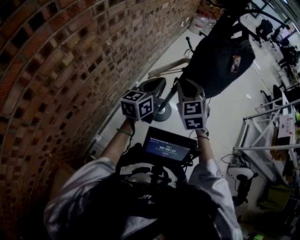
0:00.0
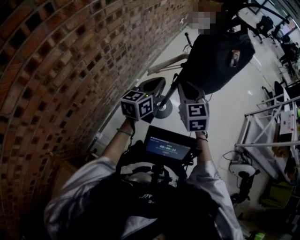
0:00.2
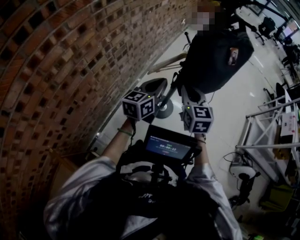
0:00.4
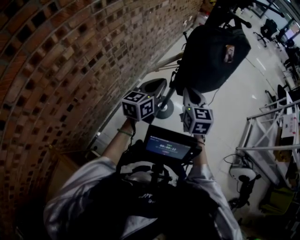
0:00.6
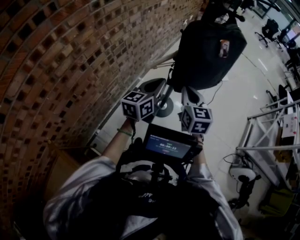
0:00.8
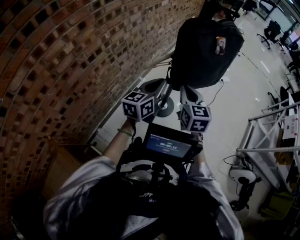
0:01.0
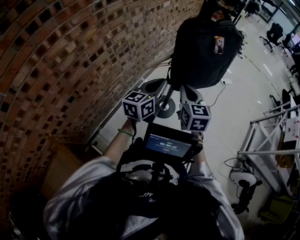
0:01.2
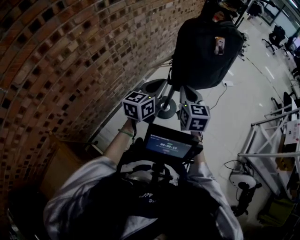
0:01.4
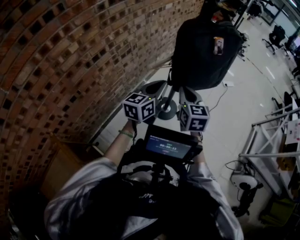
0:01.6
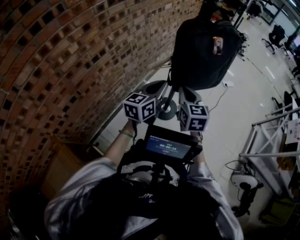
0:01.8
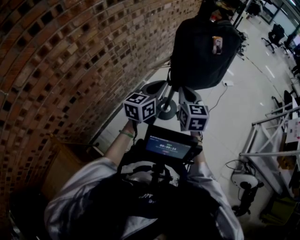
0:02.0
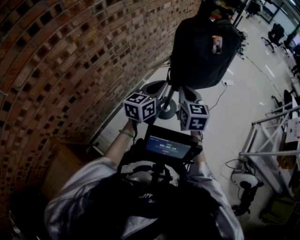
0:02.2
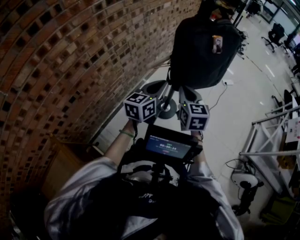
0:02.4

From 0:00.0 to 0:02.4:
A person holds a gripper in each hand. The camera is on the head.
From 0:00.0 to 0:01.2: The right gripper travels to the right by approximately 10 cm, and rotates approximately 30 degrees; the left gripper heads to the right and backward, covering some 10 cm.
From 0:01.2 to 0:02.4: Both grippers stay about where they are.

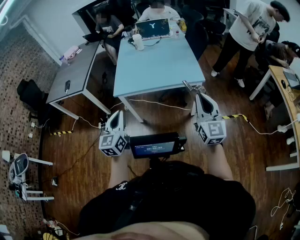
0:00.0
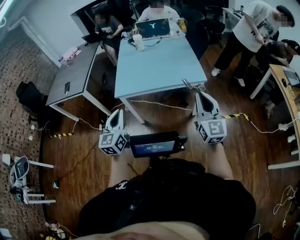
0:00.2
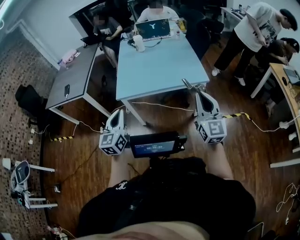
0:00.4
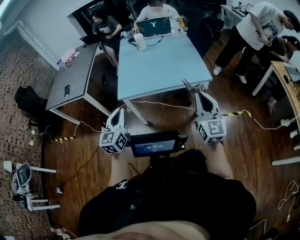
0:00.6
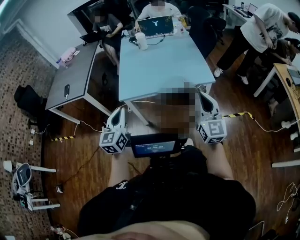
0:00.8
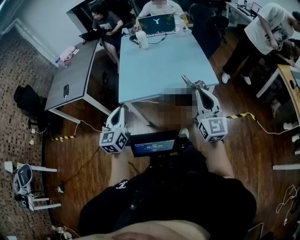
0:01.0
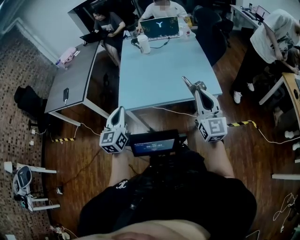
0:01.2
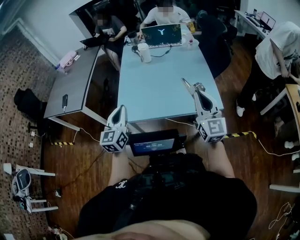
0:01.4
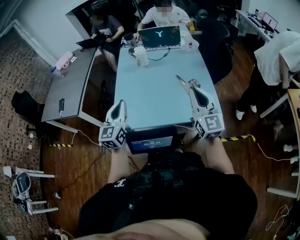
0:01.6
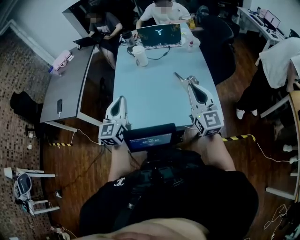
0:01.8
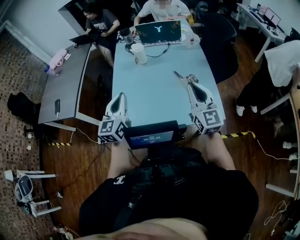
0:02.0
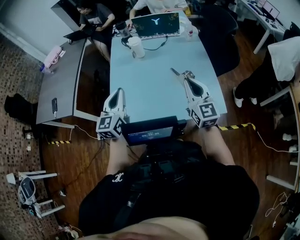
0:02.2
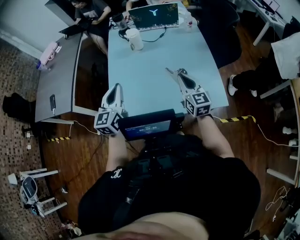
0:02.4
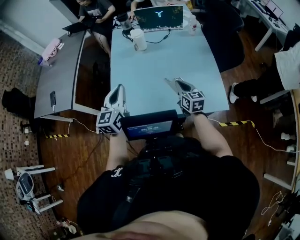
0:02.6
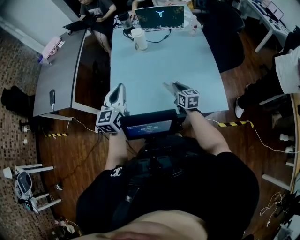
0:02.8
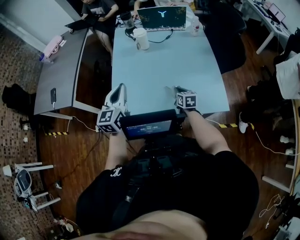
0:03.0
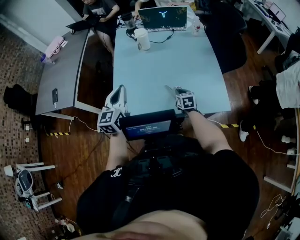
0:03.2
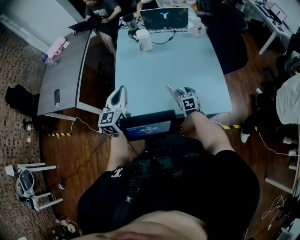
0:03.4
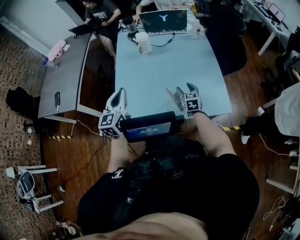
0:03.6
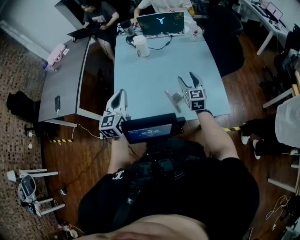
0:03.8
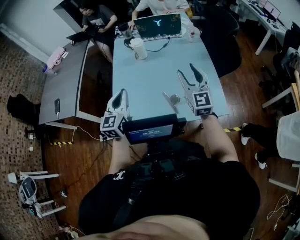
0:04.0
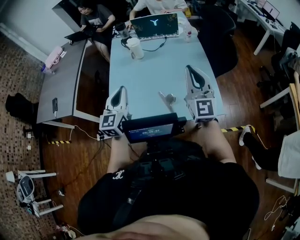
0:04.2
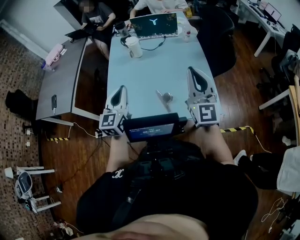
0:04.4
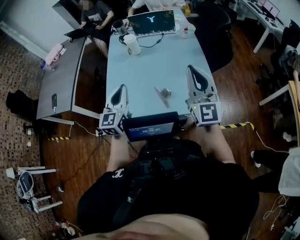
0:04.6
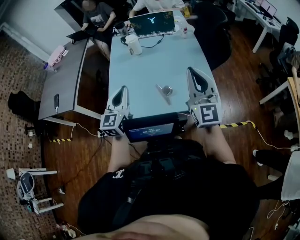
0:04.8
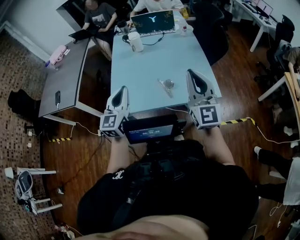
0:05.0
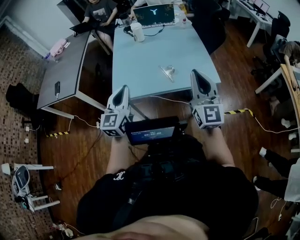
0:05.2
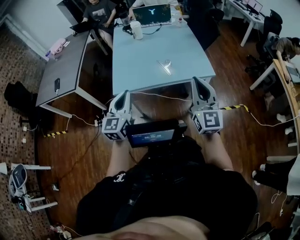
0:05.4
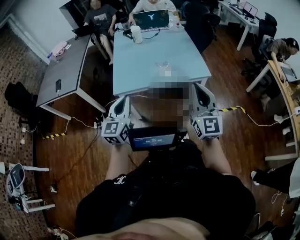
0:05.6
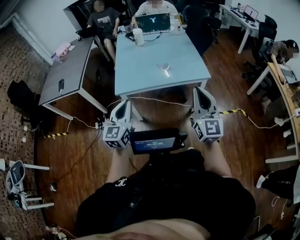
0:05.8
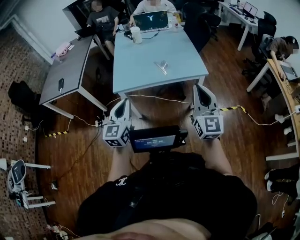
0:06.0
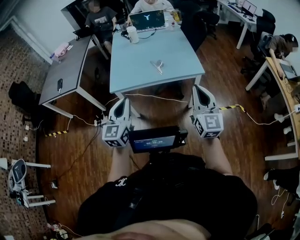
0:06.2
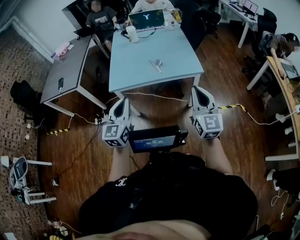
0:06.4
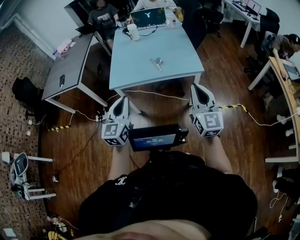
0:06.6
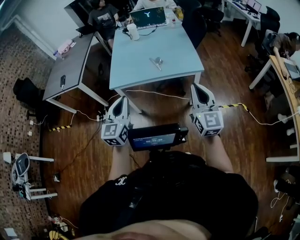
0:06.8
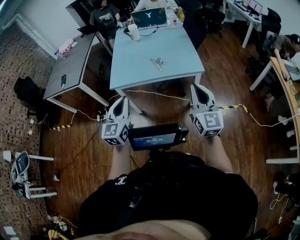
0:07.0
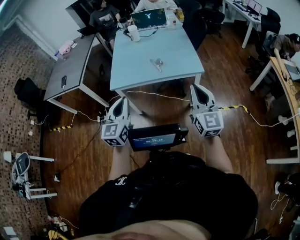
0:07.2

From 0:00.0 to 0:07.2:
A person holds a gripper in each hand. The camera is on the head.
From 0:00.0 to 0:01.4: The grippers both shift forward by approximately 30 cm.
From 0:01.4 to 0:02.8: The right gripper goes some 35 cm downward and forward, and points its fingers about 30 degrees further downward. Meanwhile the left gripper heads forward, covering some 15 cm.
From 0:02.8 to 0:04.4: The right gripper moves upward, about 30 cm, tips its fingers upward by approximately 40 degrees, and opens, then closes again.
From 0:04.4 to 0:05.8: Both grippers move backward, roughly 40 cm.
From 0:05.8 to 0:07.2: The grippers both shift to the right by about 10 cm.

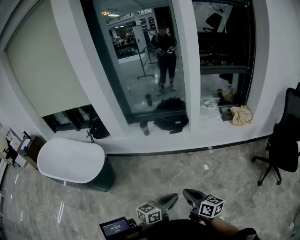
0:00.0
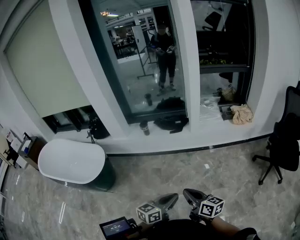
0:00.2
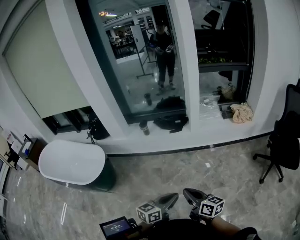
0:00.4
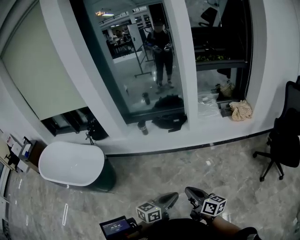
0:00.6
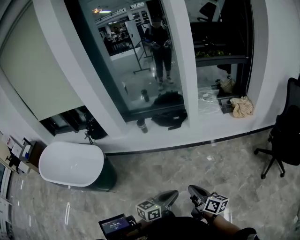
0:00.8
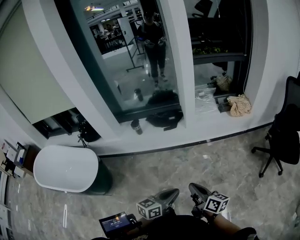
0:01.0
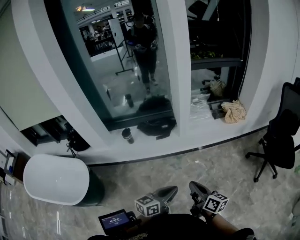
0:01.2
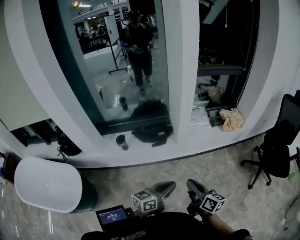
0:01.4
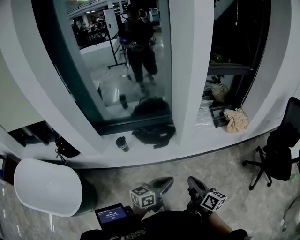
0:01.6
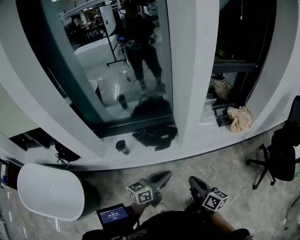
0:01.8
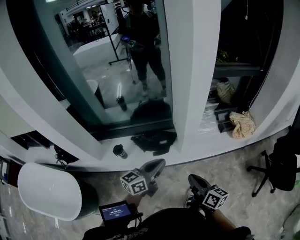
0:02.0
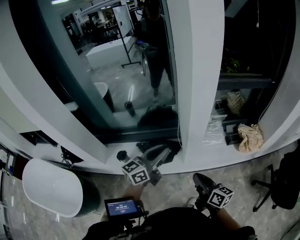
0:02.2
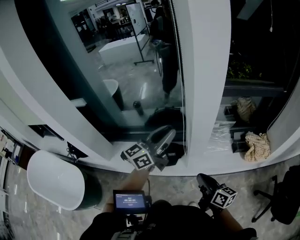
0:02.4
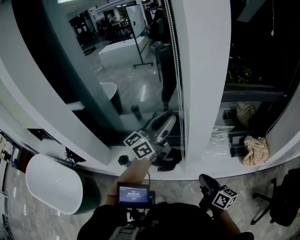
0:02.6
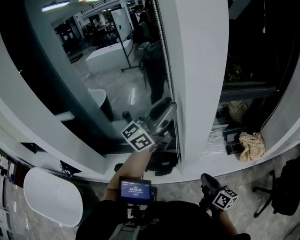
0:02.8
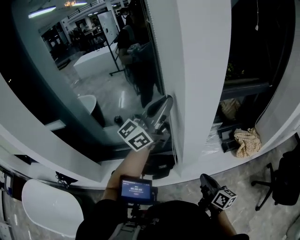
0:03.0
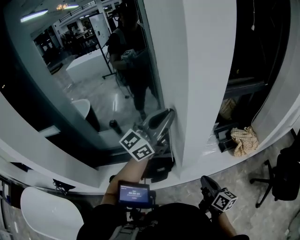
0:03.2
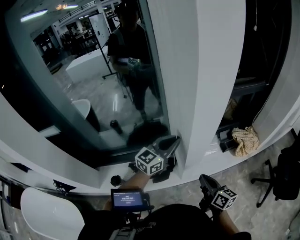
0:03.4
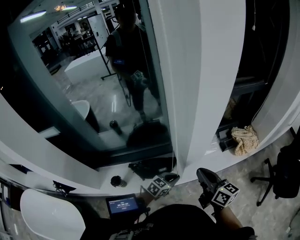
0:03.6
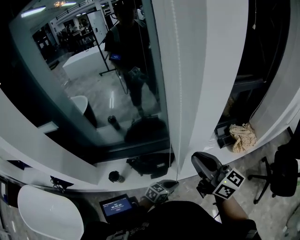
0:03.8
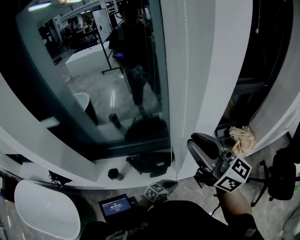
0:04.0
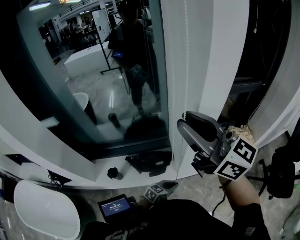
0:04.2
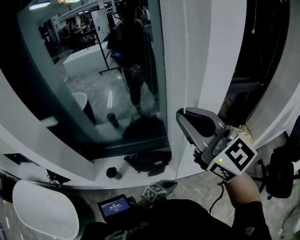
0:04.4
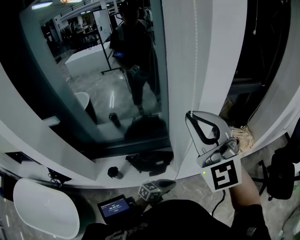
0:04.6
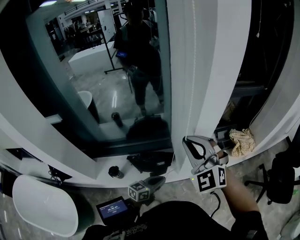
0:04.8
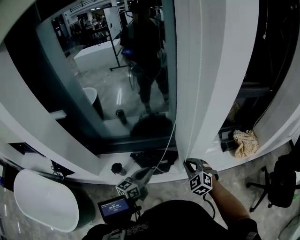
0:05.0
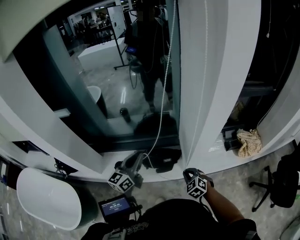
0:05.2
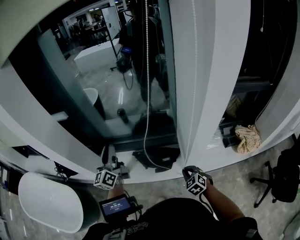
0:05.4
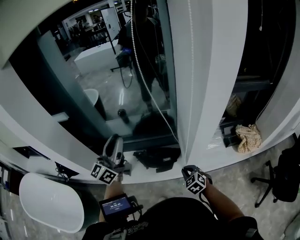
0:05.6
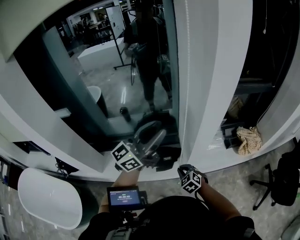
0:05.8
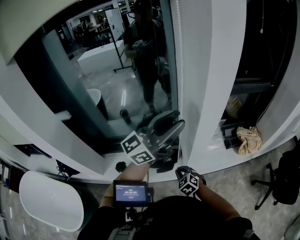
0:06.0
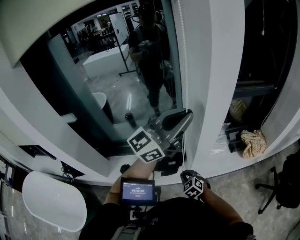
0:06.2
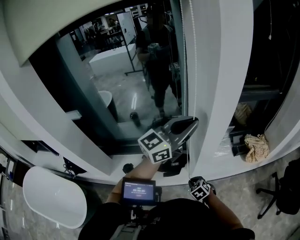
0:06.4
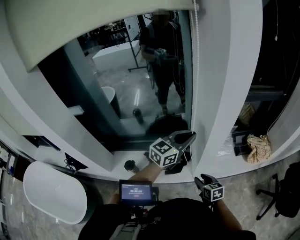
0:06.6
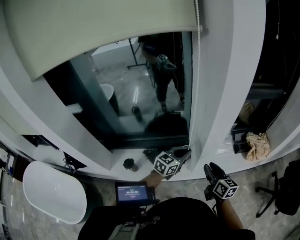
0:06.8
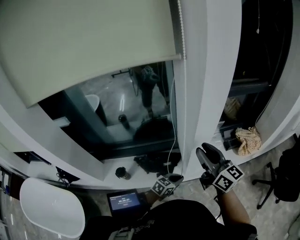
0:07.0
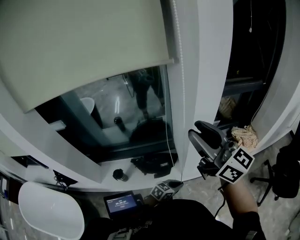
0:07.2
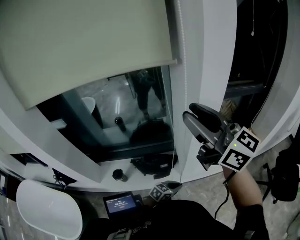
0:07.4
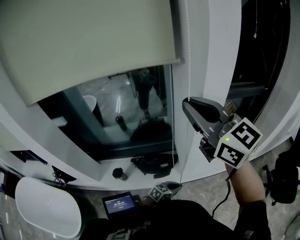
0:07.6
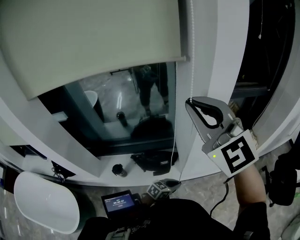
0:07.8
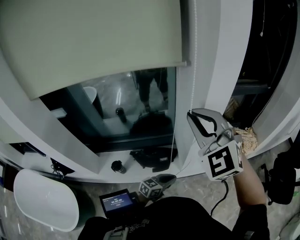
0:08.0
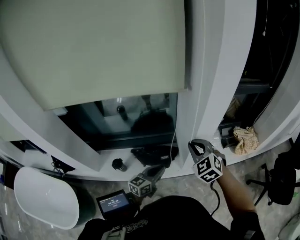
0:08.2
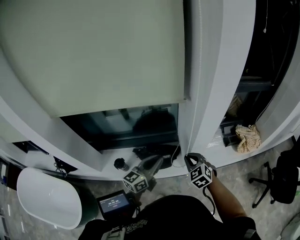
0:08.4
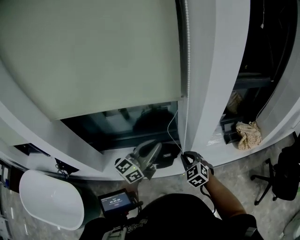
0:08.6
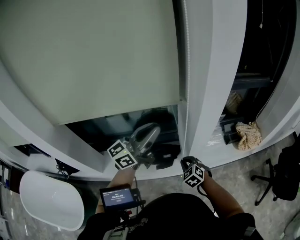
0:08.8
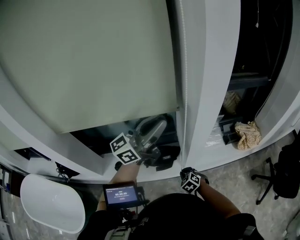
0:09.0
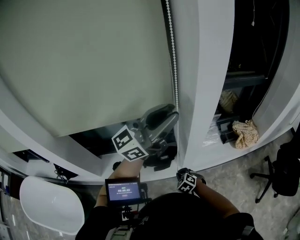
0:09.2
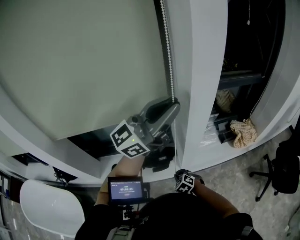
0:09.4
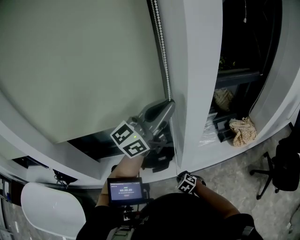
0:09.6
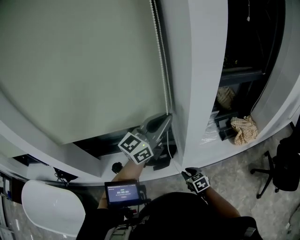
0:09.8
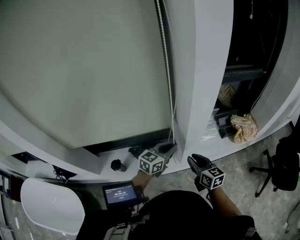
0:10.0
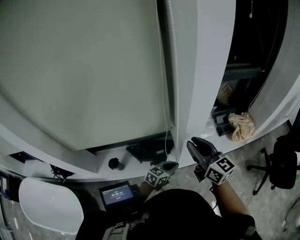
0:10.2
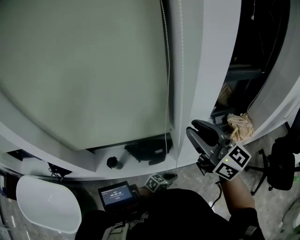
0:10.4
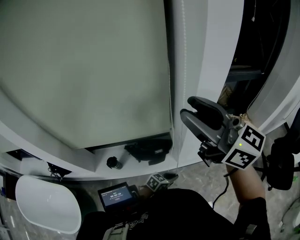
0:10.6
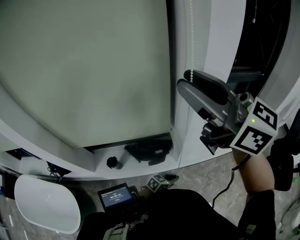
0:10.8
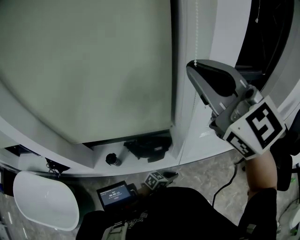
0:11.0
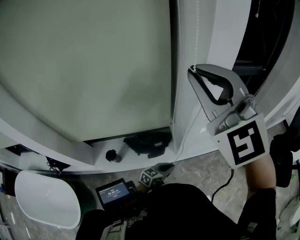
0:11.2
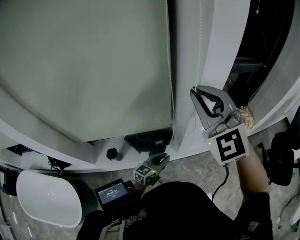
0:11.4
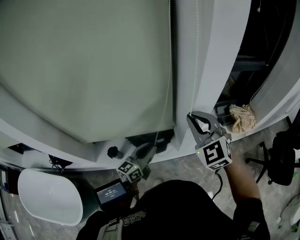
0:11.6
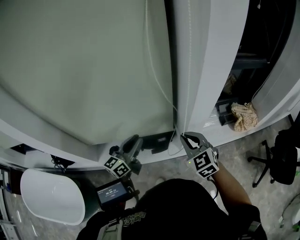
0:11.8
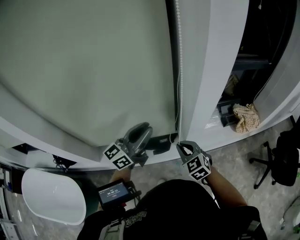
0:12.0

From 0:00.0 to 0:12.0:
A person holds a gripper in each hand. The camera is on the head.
From 0:00.0 to 0:01.6: The two grippers go some 35 cm forward. The right gripper changes its angle by about 20 degrees.
From 0:01.6 to 0:03.0: The left gripper heads forward and upward, covering roughly 60 cm, tilts its fingers about 30 degrees upward, and opens, then closes once more; the right gripper heads forward, covering about 30 cm.
From 0:03.0 to 0:04.4: The right gripper moves upward, some 35 cm, and rotates around the line of its fingers by approximately 50 degrees, counterclockwise from behind. The left gripper travels downward and backward by approximately 50 cm, and tilts its fingers about 60 degrees downward.
From 0:04.4 to 0:06.0: The left gripper shifts approximately 50 cm upward, points its fingers some 60 degrees further upward, and opens, while the right gripper is displaced downward by approximately 50 cm, and tips its fingers downward by roughly 60 degrees.
From 0:06.0 to 0:07.6: The left gripper heads downward, covering some 50 cm, angles its fingers downward, by about 60 degrees, and closes. The right gripper heads upward, covering some 50 cm, tilts its fingers approximately 60 degrees upward, and opens, then closes once more.
From 0:07.6 to 0:09.0: The left gripper travels upward by some 40 cm, and points its fingers some 60 degrees further upward; the right gripper is displaced downward by roughly 60 cm, and angles its fingers downward, by approximately 70 degrees.
From 0:09.0 to 0:10.4: The right gripper goes about 40 cm upward, angles its fingers upward, by roughly 70 degrees, and opens up. Meanwhile the left gripper travels downward by about 50 cm, and tilts its fingers approximately 60 degrees downward.
From 0:10.4 to 0:12.0: The right gripper heads downward, covering about 30 cm, angles its fingers downward, by approximately 40 degrees, and closes. The left gripper is displaced upward and to the left by roughly 40 cm, and tilts its fingers about 50 degrees upward.

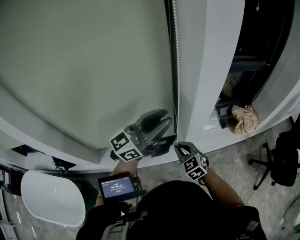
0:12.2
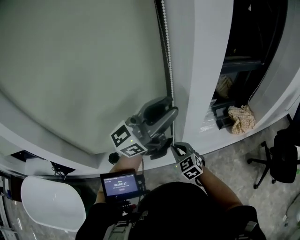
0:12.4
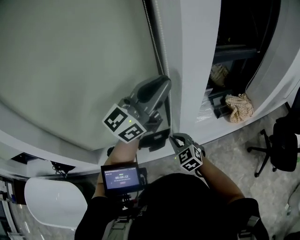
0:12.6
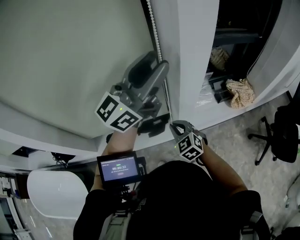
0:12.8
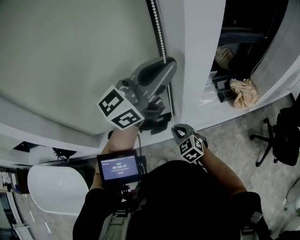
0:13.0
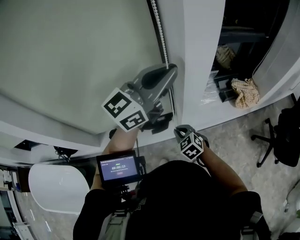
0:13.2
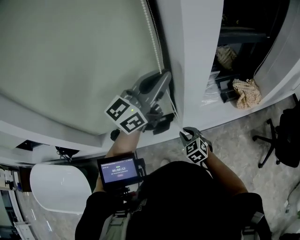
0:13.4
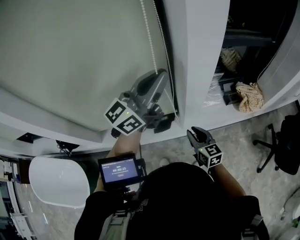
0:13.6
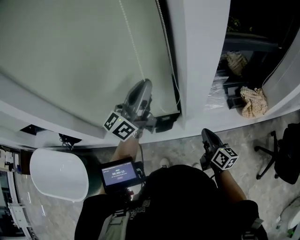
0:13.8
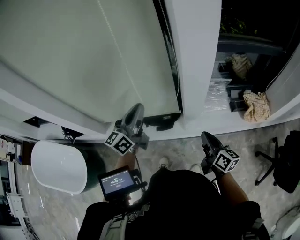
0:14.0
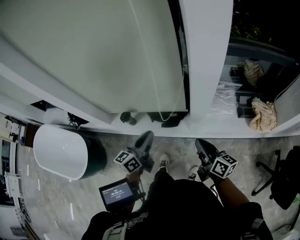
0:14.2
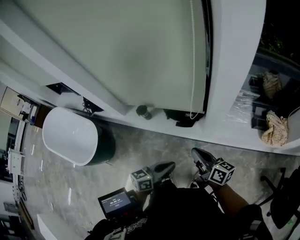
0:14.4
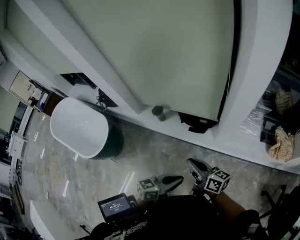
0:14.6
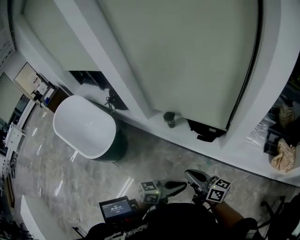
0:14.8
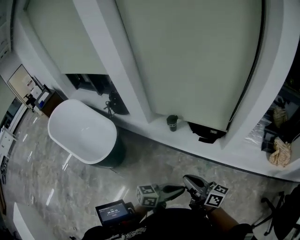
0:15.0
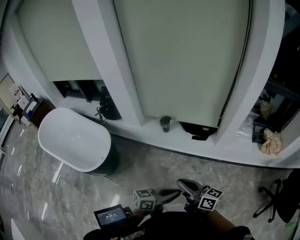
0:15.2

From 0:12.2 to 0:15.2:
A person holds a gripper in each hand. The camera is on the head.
From 0:12.2 to 0:13.8: The right gripper travels to the right by roughly 15 cm, rotates around the line of its fingers by roughly 60 degrees, clockwise from behind, and opens and closes again, while the left gripper travels upward and back again, about 10 cm each way, and turns by roughly 30 degrees.
From 0:13.8 to 0:15.2: The pair of grippers is taken approximately 50 cm. The left gripper rotates some 40 degrees; the right gripper turns by approximately 50 degrees.
